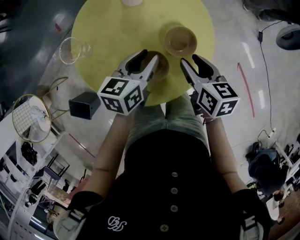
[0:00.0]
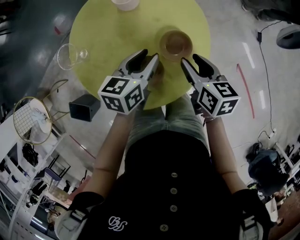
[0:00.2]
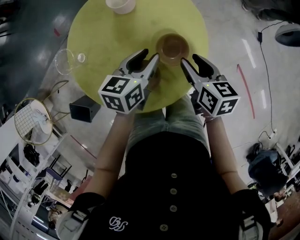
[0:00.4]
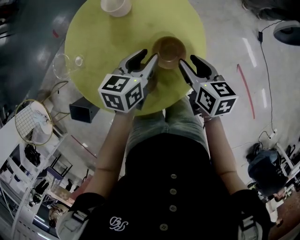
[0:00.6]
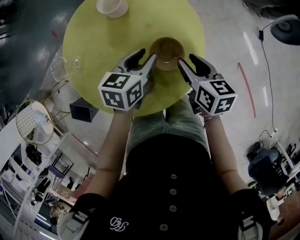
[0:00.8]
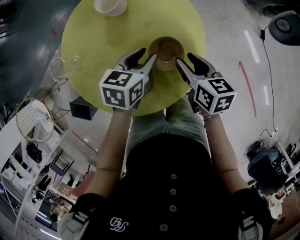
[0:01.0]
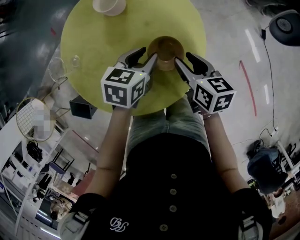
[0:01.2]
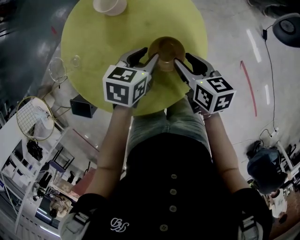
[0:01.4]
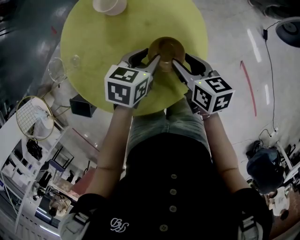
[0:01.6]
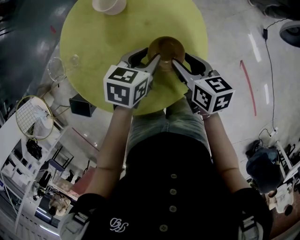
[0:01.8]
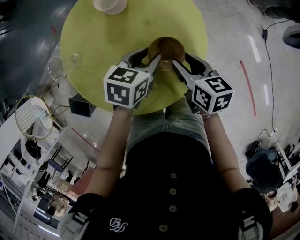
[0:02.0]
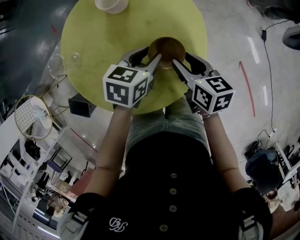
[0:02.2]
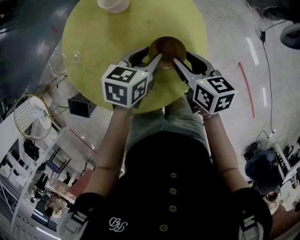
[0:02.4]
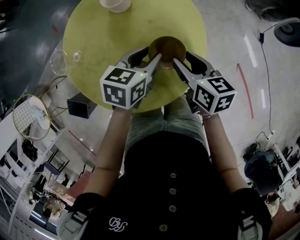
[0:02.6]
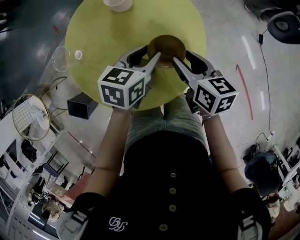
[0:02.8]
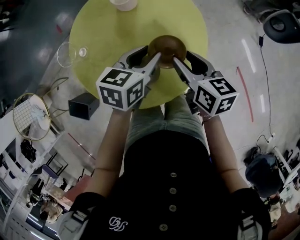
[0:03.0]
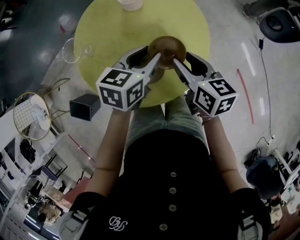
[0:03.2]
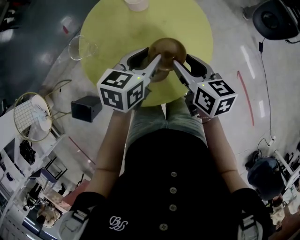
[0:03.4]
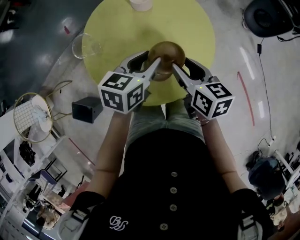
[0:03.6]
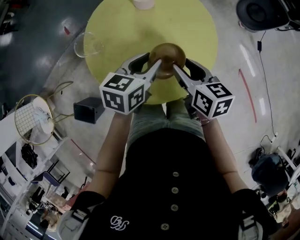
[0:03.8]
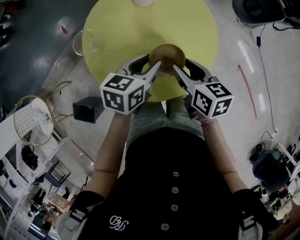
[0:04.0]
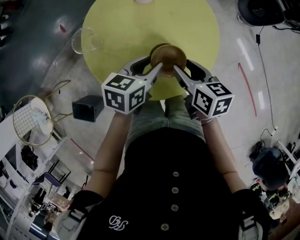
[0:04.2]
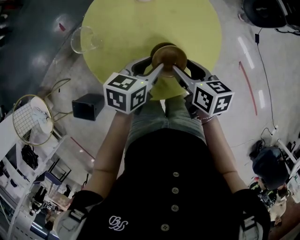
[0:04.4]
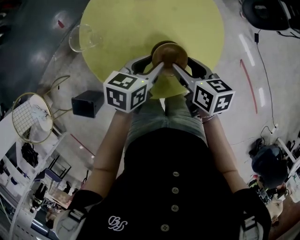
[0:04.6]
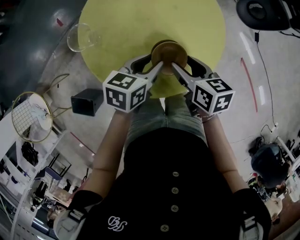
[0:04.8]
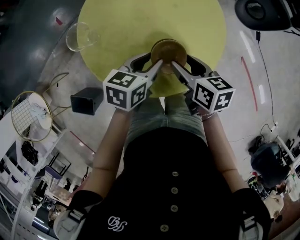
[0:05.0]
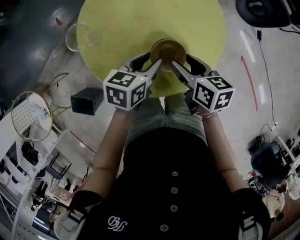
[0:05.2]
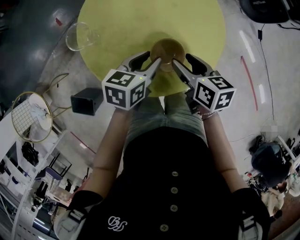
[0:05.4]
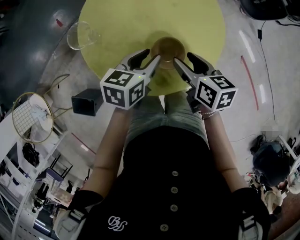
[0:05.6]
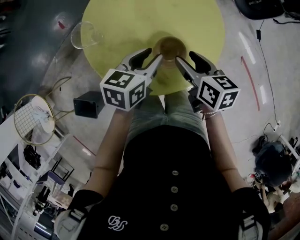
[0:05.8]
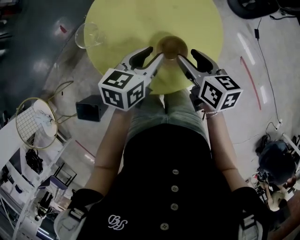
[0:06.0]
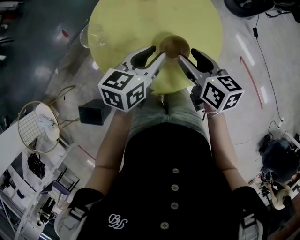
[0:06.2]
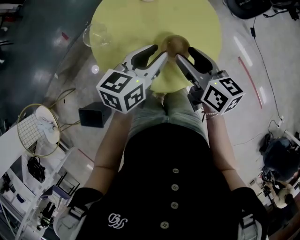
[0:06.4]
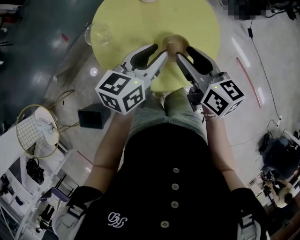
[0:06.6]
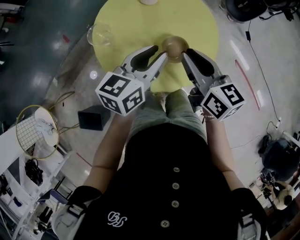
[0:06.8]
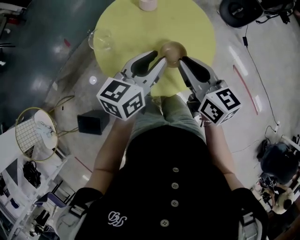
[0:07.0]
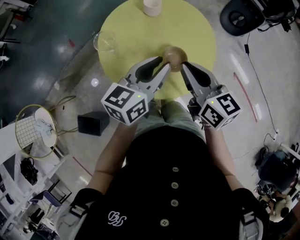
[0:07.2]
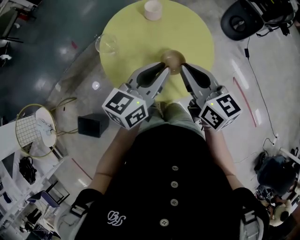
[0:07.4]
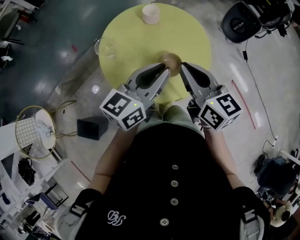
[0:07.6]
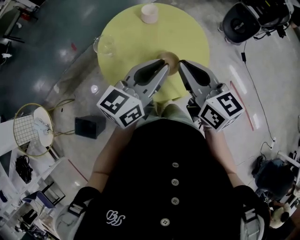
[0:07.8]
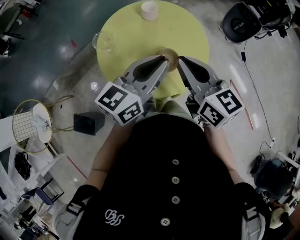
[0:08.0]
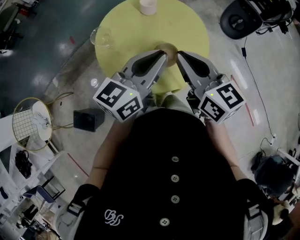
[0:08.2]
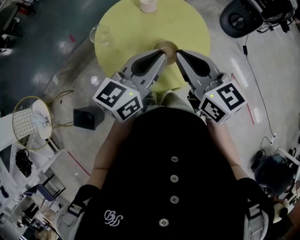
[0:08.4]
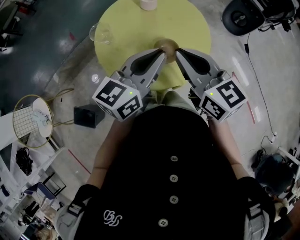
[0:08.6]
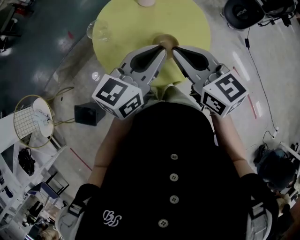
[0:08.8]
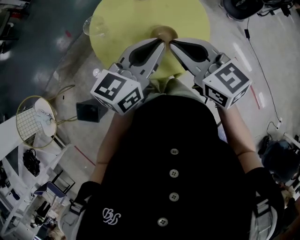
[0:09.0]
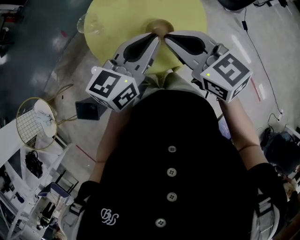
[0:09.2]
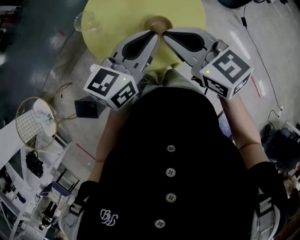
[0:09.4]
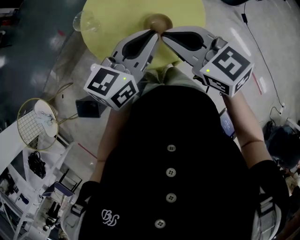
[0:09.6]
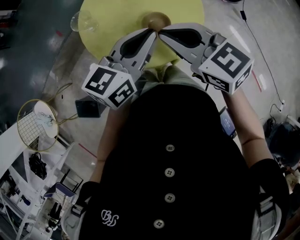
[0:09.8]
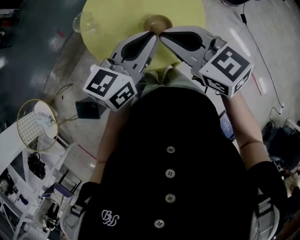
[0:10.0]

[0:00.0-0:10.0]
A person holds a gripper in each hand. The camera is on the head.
0:00.0 to 0:01.4: The right gripper ends up approximately 5 cm from where it was; the left gripper heads downward and to the right, covering some 10 cm, and changes its angle by about 20 degrees.
0:01.4 to 0:02.8: The two grippers go approximately 5 cm upward.
0:02.8 to 0:04.2: Both grippers move to the left and backward, some 10 cm.
0:04.2 to 0:05.8: The grippers make only small movements.
0:05.8 to 0:07.2: Both grippers move upward, roughly 15 cm. The right gripper turns by roughly 30 degrees, and closes its fingers. The left gripper swivels roughly 30 degrees.
0:08.6 to 0:10.0: The grippers move only a little.

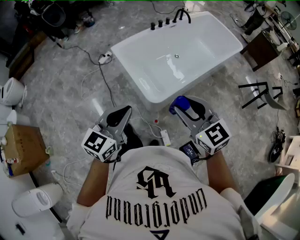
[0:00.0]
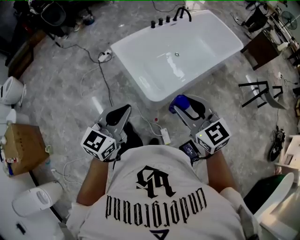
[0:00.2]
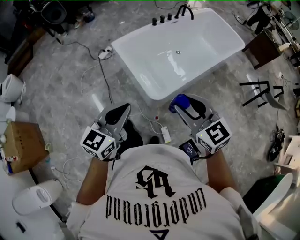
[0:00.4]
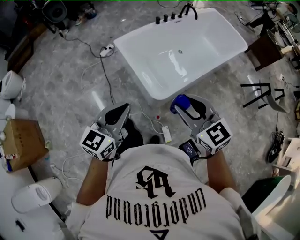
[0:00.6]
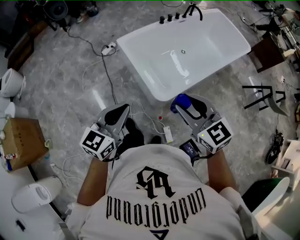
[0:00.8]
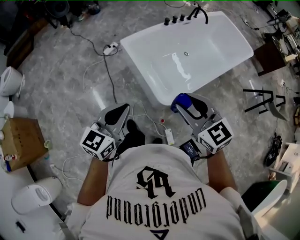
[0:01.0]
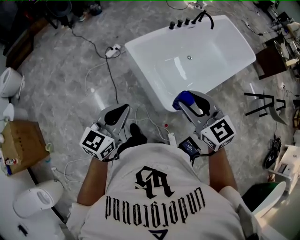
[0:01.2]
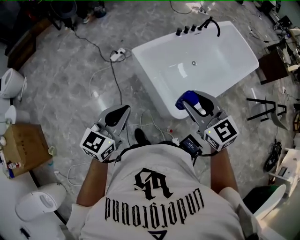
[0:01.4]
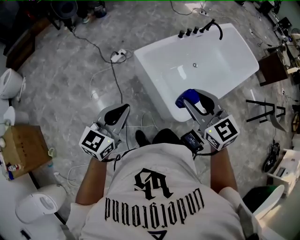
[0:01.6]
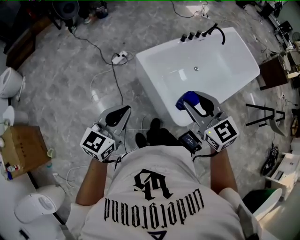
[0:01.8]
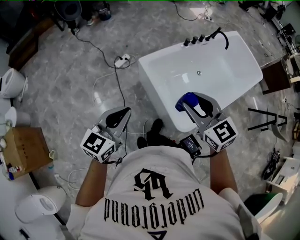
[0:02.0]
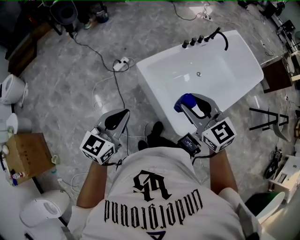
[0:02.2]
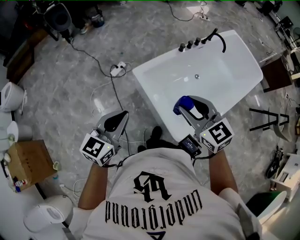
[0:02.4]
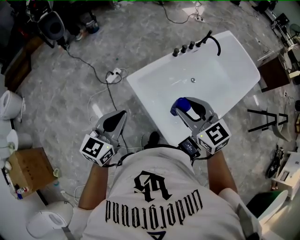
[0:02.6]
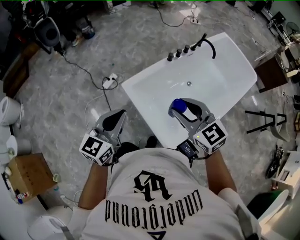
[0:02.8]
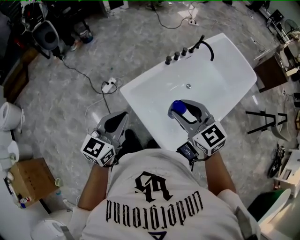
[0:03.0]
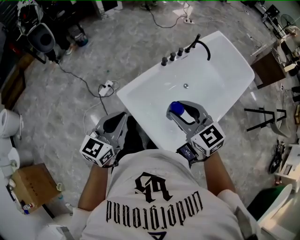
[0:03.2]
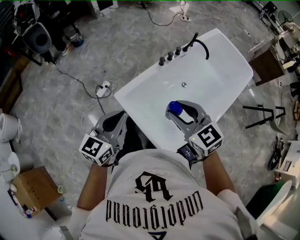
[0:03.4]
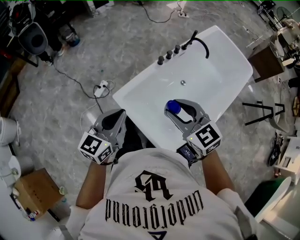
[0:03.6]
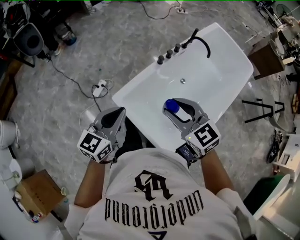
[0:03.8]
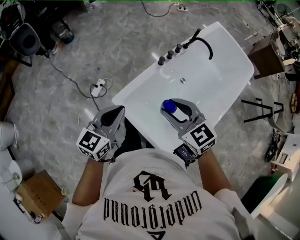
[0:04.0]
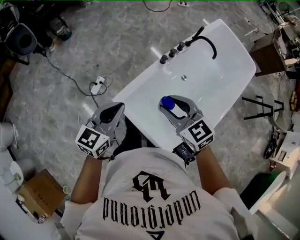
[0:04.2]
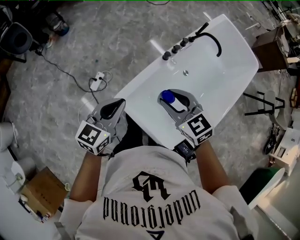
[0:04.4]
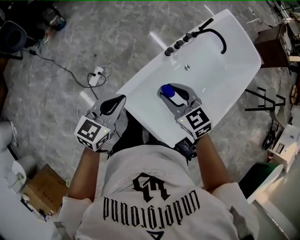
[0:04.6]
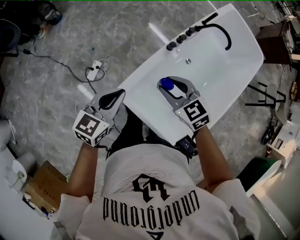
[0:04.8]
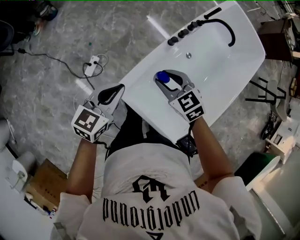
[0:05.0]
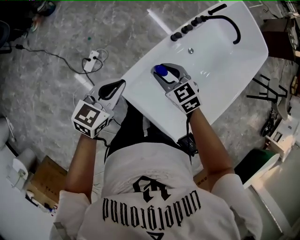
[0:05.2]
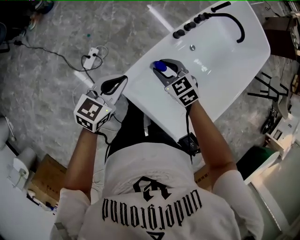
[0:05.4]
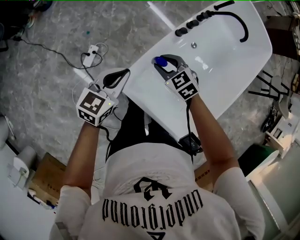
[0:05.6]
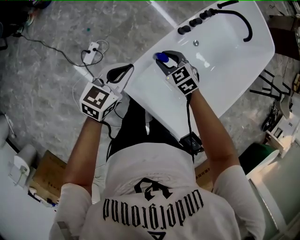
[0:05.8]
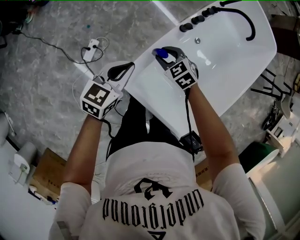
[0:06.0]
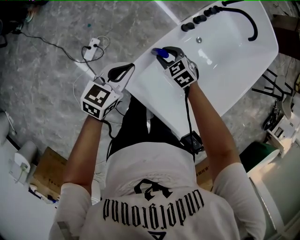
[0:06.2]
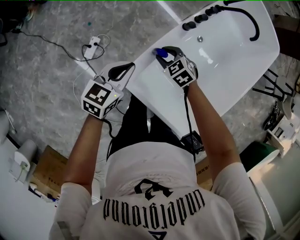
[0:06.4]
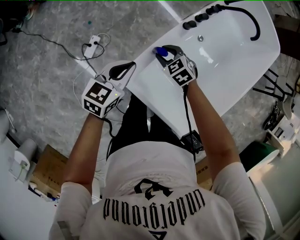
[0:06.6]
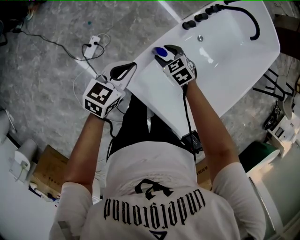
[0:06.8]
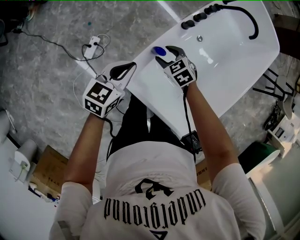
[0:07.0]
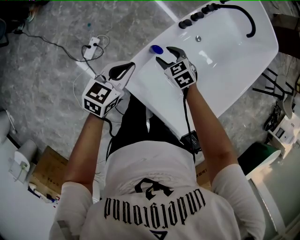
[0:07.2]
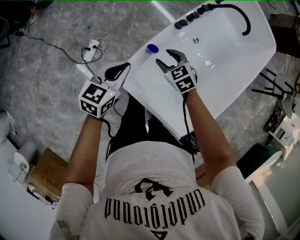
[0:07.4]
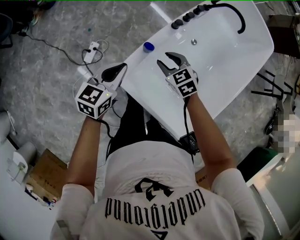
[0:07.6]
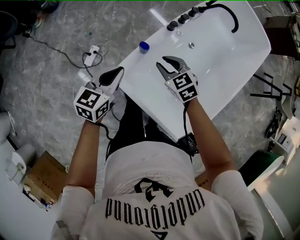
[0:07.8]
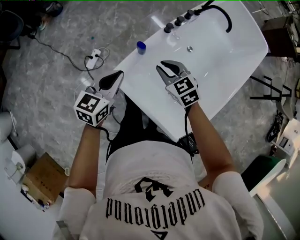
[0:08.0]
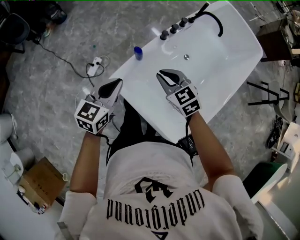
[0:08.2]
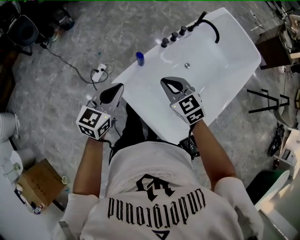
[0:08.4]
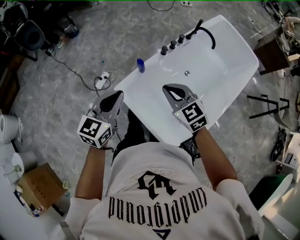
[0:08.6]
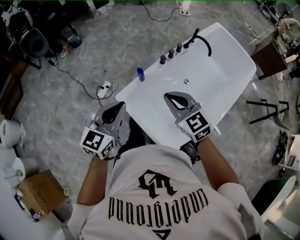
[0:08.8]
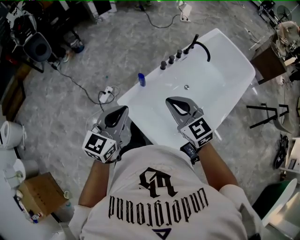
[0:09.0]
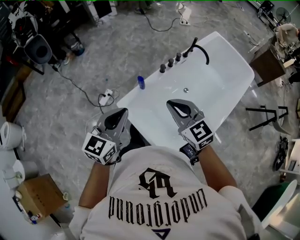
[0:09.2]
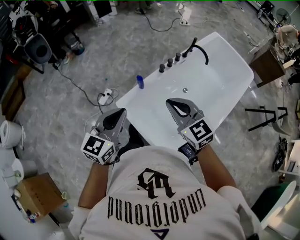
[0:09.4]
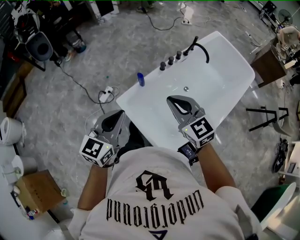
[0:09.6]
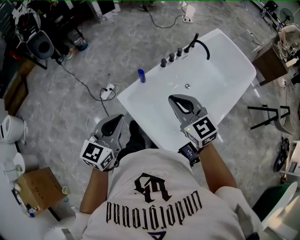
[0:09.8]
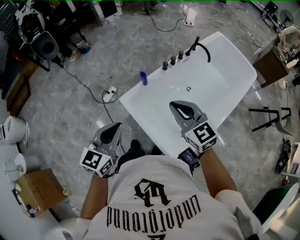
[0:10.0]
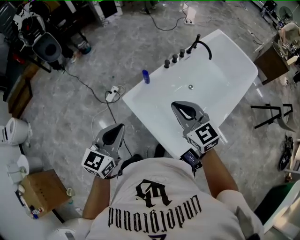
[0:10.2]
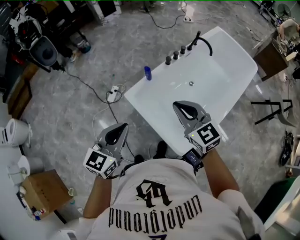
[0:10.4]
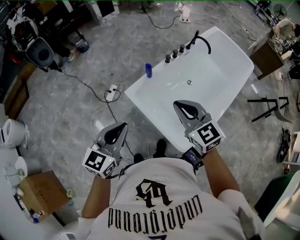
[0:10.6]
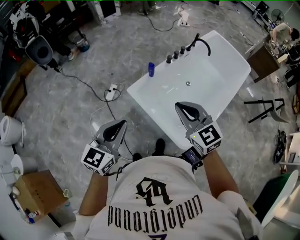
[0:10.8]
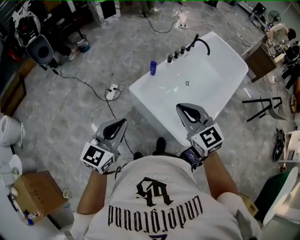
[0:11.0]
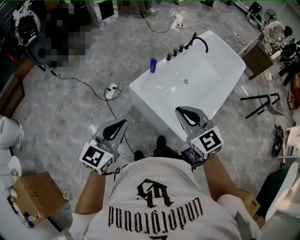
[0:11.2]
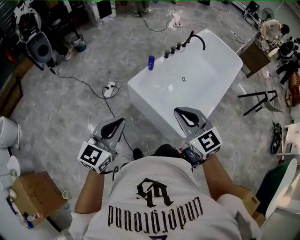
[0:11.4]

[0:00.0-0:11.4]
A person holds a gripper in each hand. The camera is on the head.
0:00.0 to 0:01.4: The right gripper is displaced forward and to the left by approximately 25 cm. The left gripper heads to the left and forward, covering about 25 cm.
0:01.4 to 0:02.8: The two grippers go approximately 25 cm forward.
0:02.8 to 0:04.2: The two grippers go some 25 cm forward.
0:04.2 to 0:05.6: Both grippers travel together downward and forward, roughly 30 cm. The right gripper turns by about 20 degrees.
0:05.6 to 0:07.2: The right gripper is displaced downward by roughly 10 cm, and opens up.
0:07.2 to 0:08.6: The two grippers go about 35 cm upward and backward. The right gripper changes its angle by about 30 degrees, and closes up, while the left gripper changes its angle by approximately 30 degrees.
0:08.6 to 0:10.0: The left gripper shifts about 15 cm backward and upward. The right gripper moves upward and backward, about 15 cm.
0:10.0 to 0:11.4: The two grippers go roughly 25 cm backward and to the left.

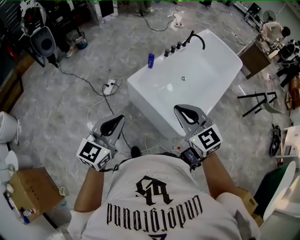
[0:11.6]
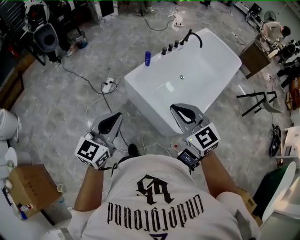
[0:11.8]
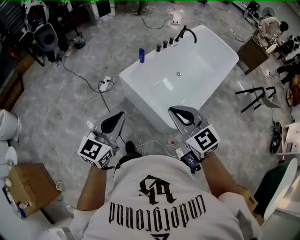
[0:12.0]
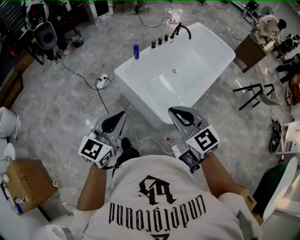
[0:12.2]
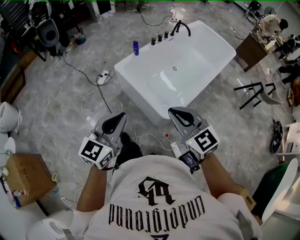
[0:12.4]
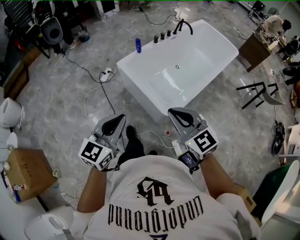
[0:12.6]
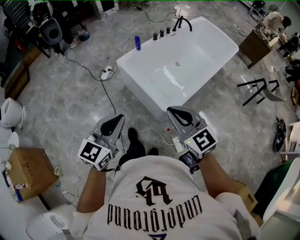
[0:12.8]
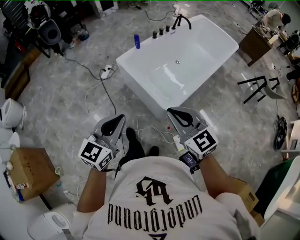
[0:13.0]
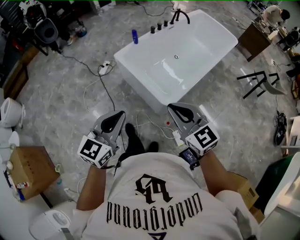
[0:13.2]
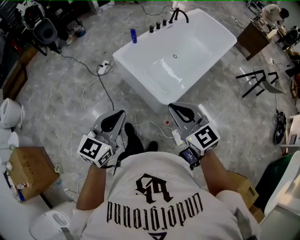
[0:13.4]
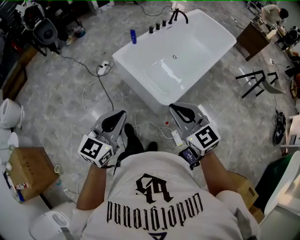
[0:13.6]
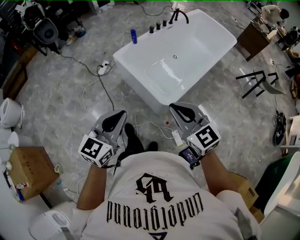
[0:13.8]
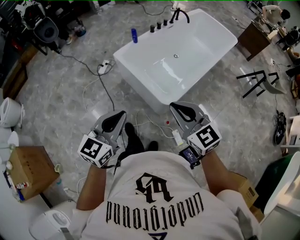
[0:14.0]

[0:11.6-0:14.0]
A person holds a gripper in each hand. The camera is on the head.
0:11.6 to 0:12.8: Both grippers travel together backward and to the right, roughly 25 cm.
0:12.8 to 0:14.0: The grippers move only a little.
